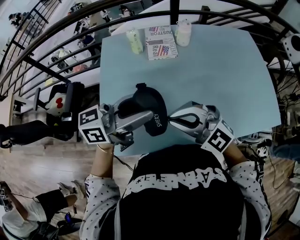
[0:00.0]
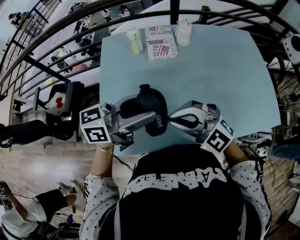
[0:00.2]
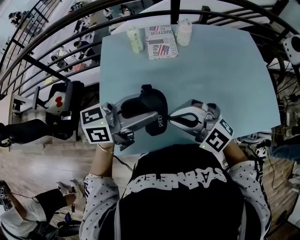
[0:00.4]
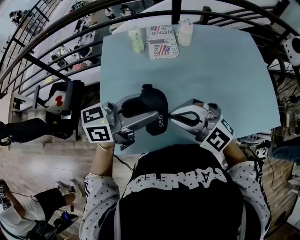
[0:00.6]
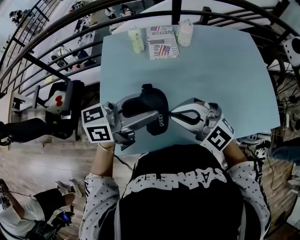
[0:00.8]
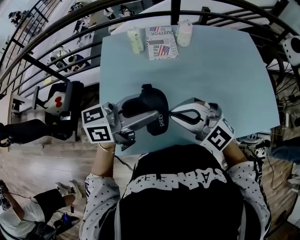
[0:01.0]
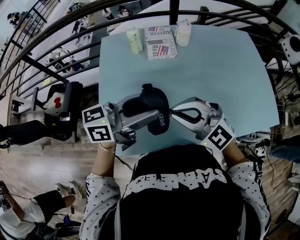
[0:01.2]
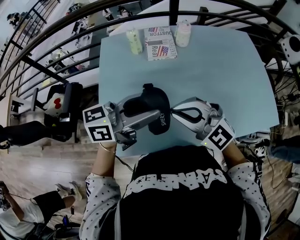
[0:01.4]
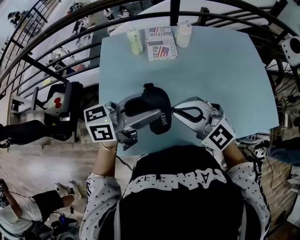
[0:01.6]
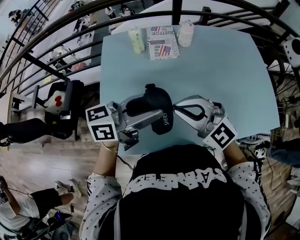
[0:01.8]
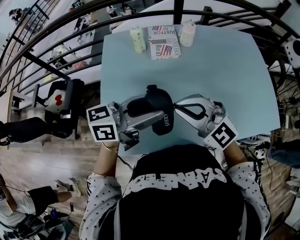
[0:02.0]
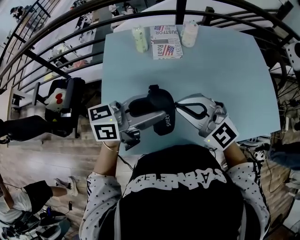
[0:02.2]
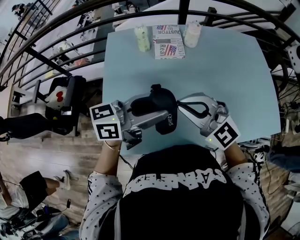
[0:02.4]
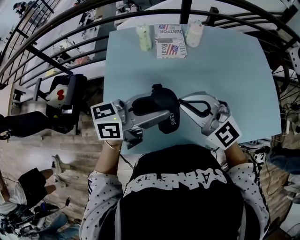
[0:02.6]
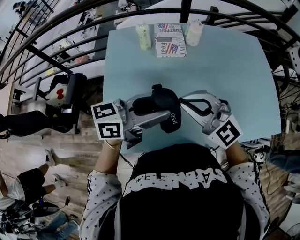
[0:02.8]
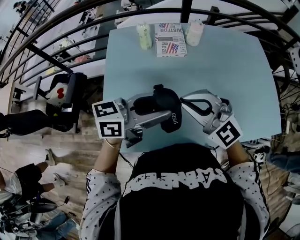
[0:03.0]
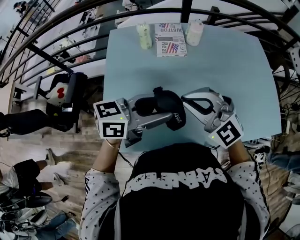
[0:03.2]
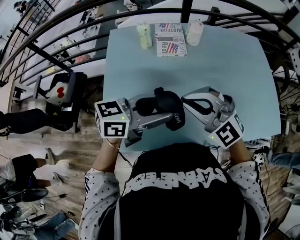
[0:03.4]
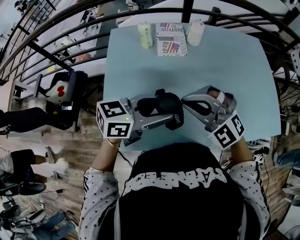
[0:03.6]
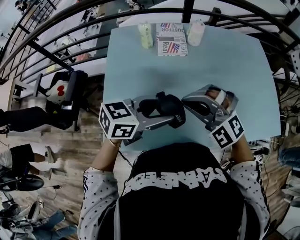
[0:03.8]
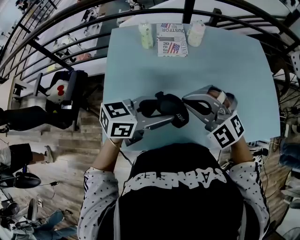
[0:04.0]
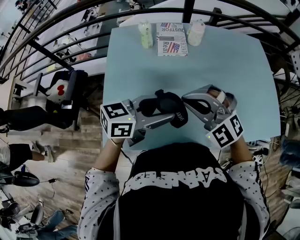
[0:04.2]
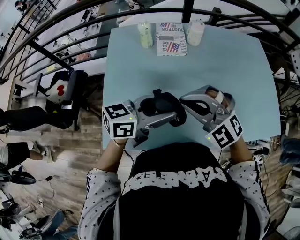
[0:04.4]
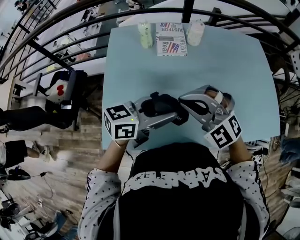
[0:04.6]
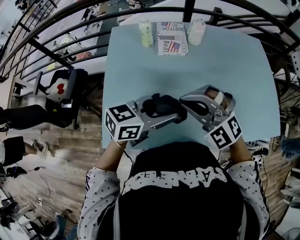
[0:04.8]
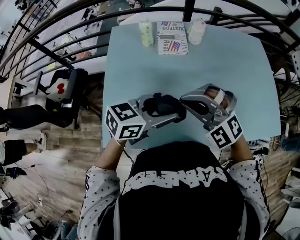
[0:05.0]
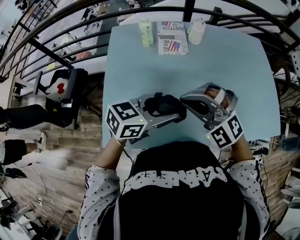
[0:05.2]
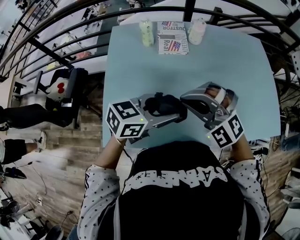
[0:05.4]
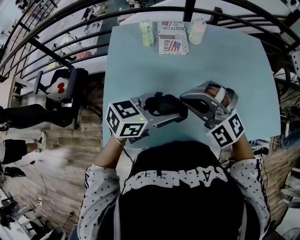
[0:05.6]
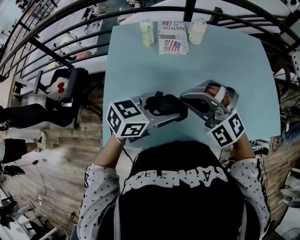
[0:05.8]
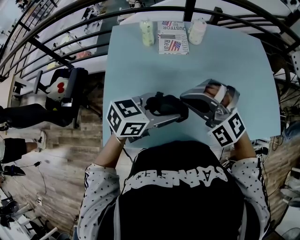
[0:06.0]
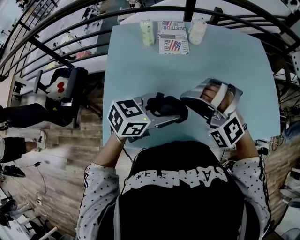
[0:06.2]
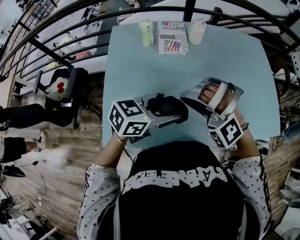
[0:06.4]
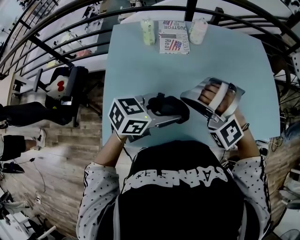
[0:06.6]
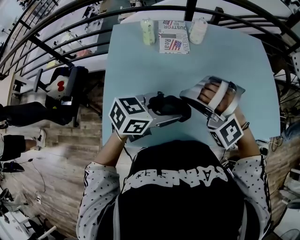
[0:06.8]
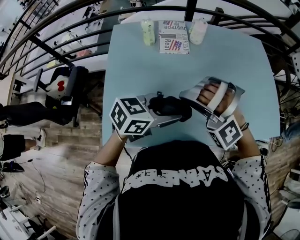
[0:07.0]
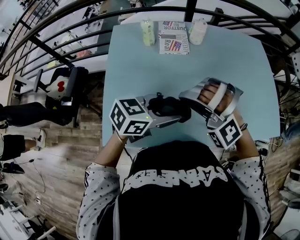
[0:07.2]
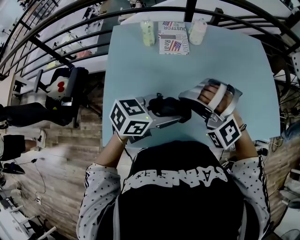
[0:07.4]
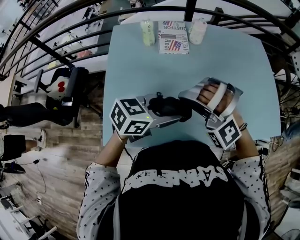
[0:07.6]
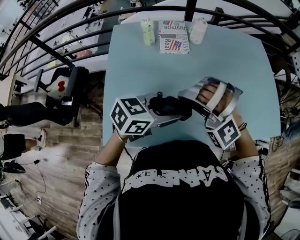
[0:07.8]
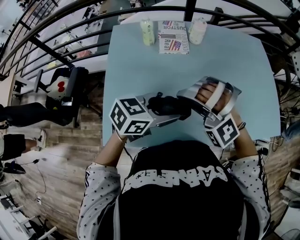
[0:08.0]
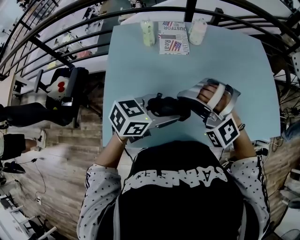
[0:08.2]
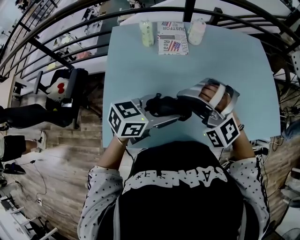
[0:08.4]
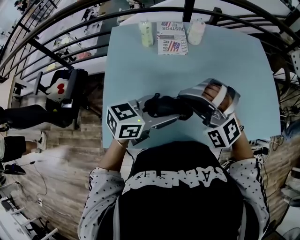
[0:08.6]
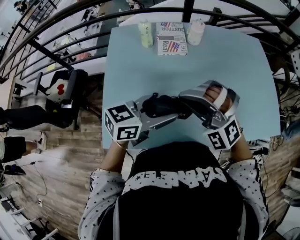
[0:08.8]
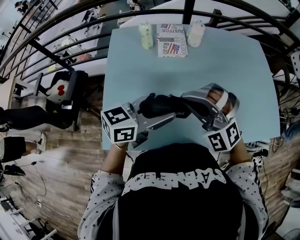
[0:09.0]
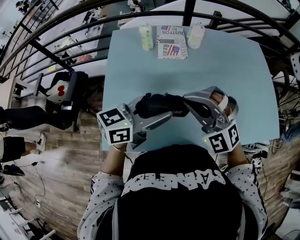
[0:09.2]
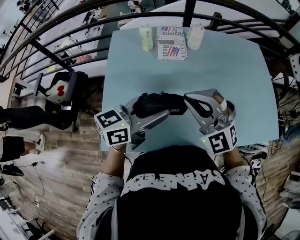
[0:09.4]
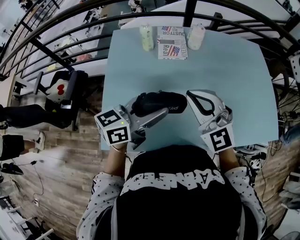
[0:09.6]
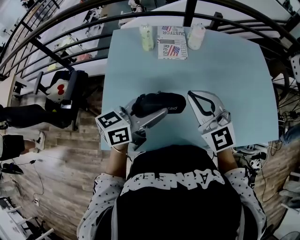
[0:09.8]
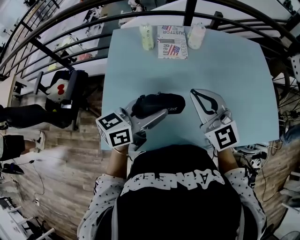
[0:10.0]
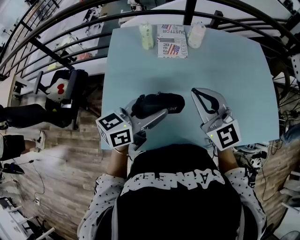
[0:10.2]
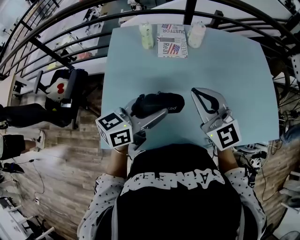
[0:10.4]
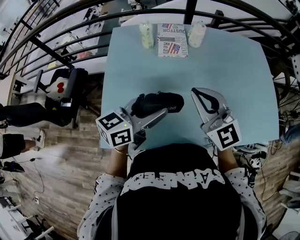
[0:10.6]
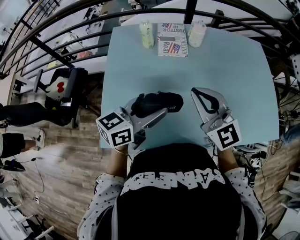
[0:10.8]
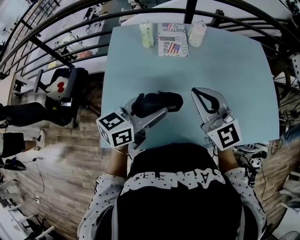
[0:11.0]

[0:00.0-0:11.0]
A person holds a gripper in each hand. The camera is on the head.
0:00.0 to 0:03.2: The grippers make only small movements.
0:04.8 to 0:06.2: The right gripper swivels about 30 degrees.
0:06.2 to 0:07.8: The grippers move only a little.
0:07.8 to 0:09.4: The right gripper rotates around the line of its fingers by about 40 degrees, clockwise from behind; the left gripper is displaced upward by about 5 cm, and rotates roughly 30 degrees.
0:09.4 to 0:11.0: The right gripper swivels roughly 30 degrees.

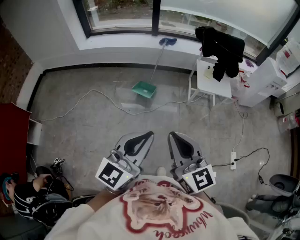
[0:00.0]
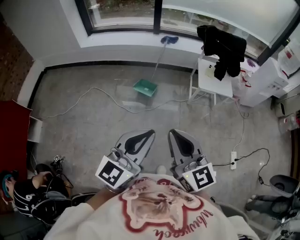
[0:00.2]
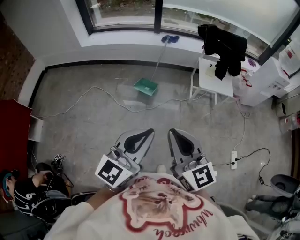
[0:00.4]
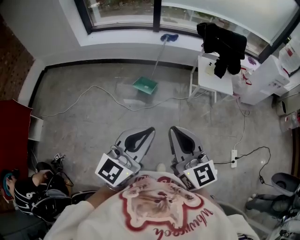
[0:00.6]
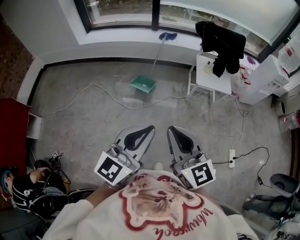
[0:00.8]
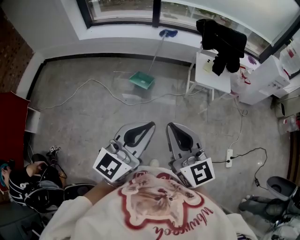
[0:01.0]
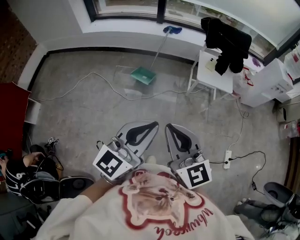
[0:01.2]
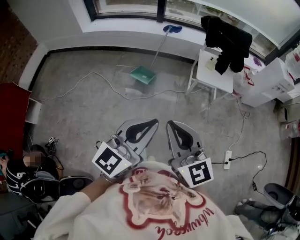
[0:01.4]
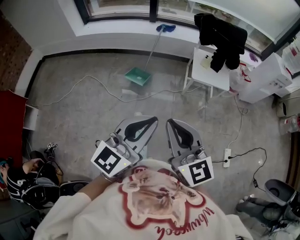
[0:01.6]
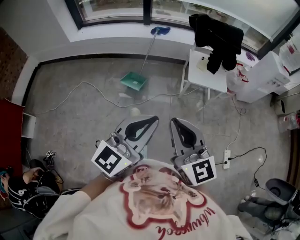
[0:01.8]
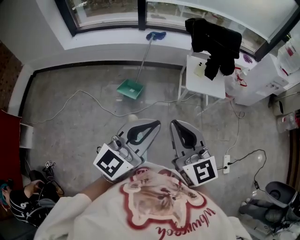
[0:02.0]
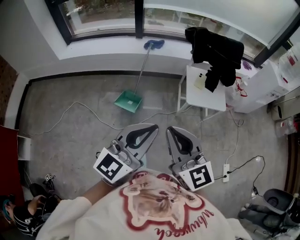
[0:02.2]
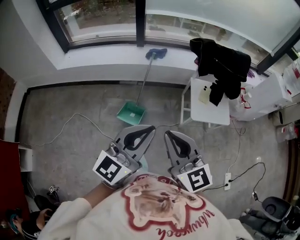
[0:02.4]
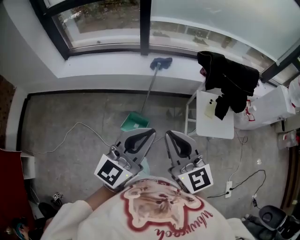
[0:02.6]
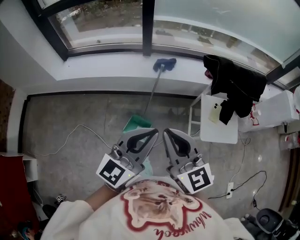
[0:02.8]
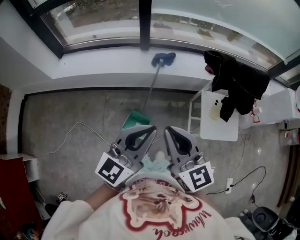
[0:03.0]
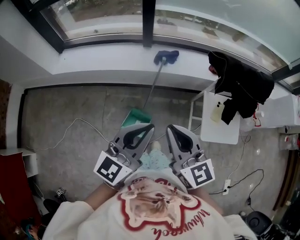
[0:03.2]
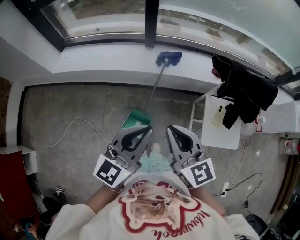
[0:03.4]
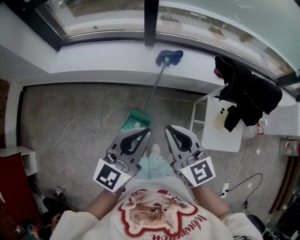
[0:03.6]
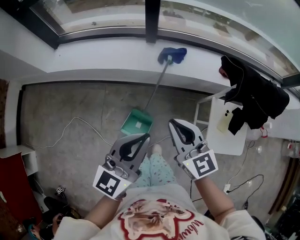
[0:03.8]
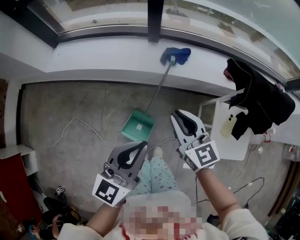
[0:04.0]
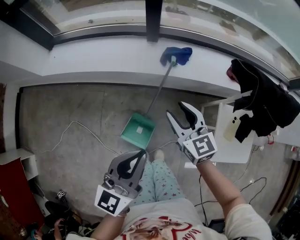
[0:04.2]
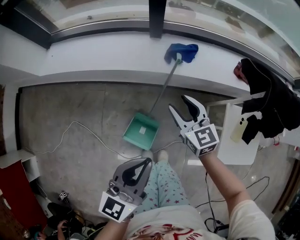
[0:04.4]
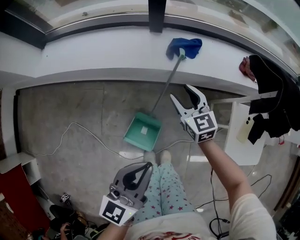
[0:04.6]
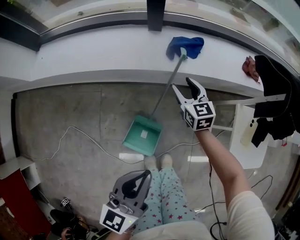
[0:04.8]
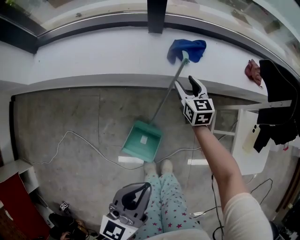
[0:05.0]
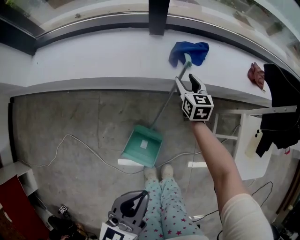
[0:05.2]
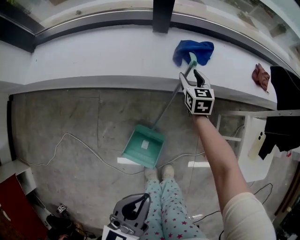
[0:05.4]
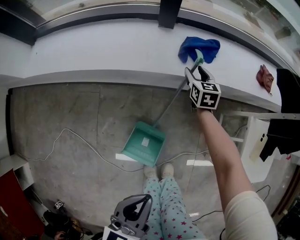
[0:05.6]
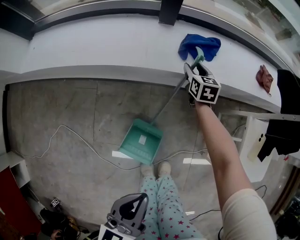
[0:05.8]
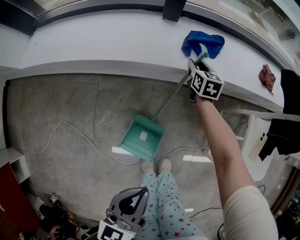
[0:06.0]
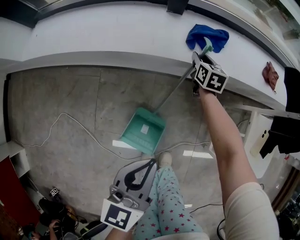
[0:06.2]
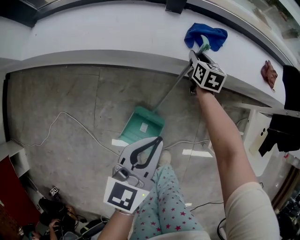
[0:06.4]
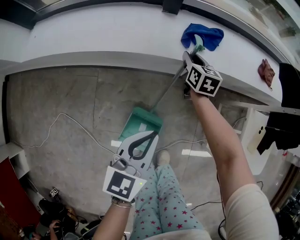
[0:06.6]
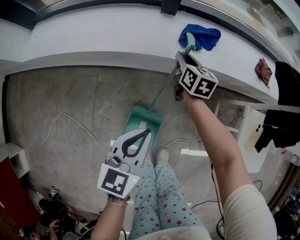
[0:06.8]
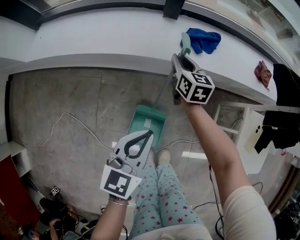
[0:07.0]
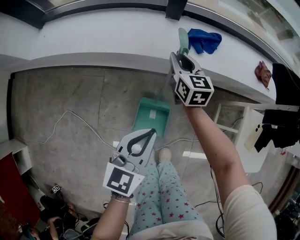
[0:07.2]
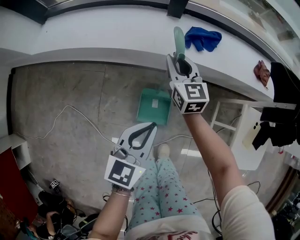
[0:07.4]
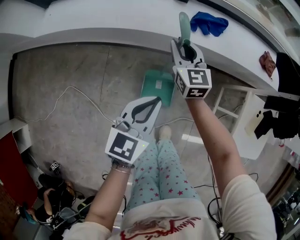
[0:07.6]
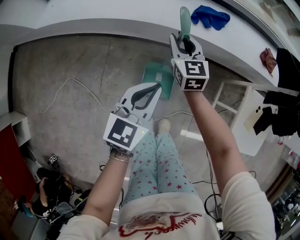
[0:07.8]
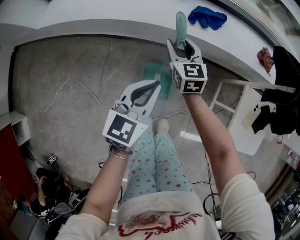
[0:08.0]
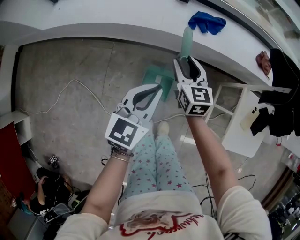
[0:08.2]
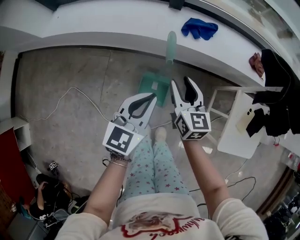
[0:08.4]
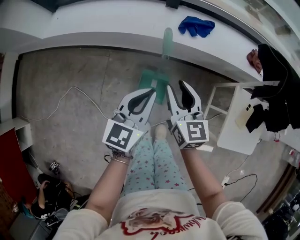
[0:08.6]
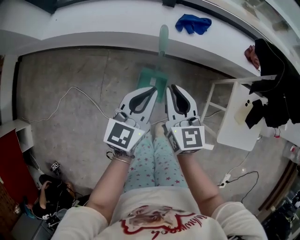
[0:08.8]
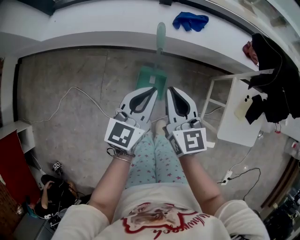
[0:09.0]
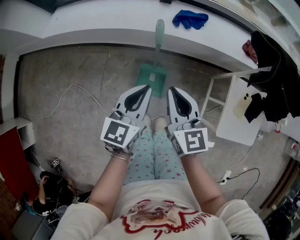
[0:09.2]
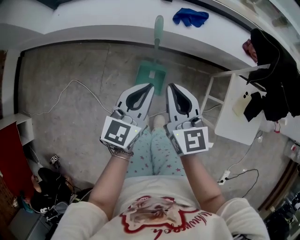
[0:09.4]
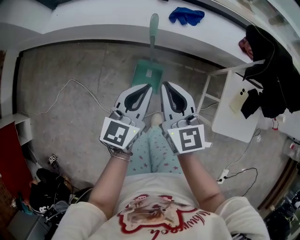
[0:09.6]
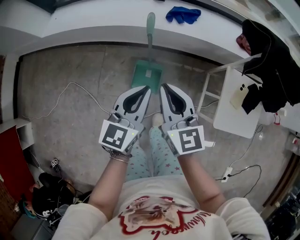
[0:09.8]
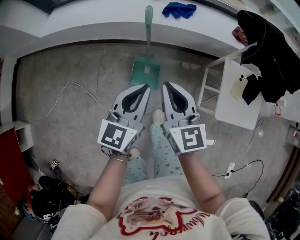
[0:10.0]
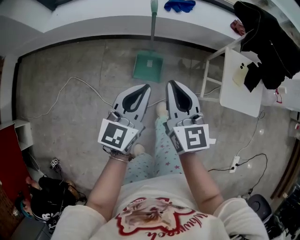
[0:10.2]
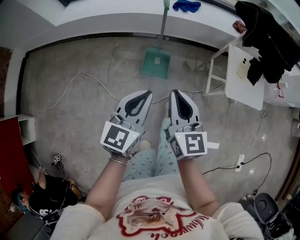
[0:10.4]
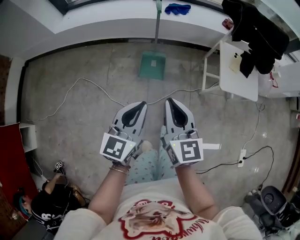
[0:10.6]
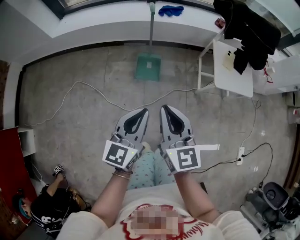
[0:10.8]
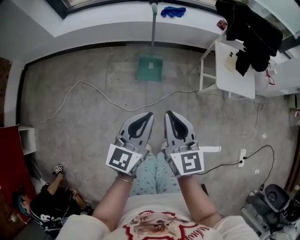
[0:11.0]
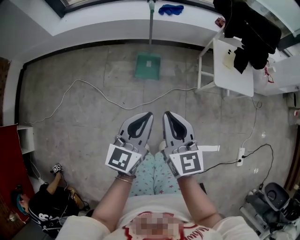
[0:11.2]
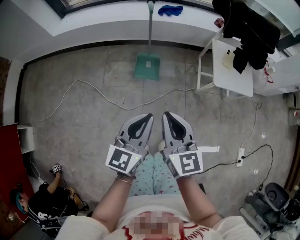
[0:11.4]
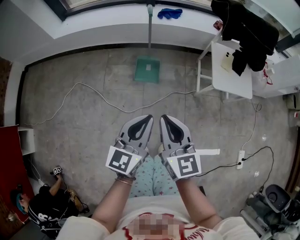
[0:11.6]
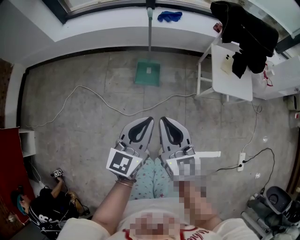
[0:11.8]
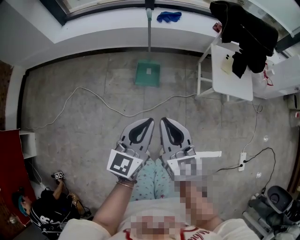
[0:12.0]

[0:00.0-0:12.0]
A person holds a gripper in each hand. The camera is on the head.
0:00.0 to 0:01.6: The grippers both shift to the right by some 10 cm.
0:01.6 to 0:03.0: The pair of grippers is taken forward, roughly 60 cm.
0:03.0 to 0:04.4: The right gripper travels downward and forward by about 40 cm, rotates some 20 degrees, and opens its fingers, while the left gripper heads downward and forward, covering roughly 25 cm, and swivels approximately 20 degrees.
0:04.4 to 0:06.0: The right gripper heads downward and forward, covering about 35 cm, and turns by roughly 30 degrees. The left gripper shifts some 15 cm downward.
0:06.0 to 0:07.6: The left gripper goes about 5 cm forward. The right gripper goes roughly 25 cm upward, backward and to the left, and changes its angle by some 30 degrees.
0:07.6 to 0:09.0: The left gripper is displaced upward by approximately 10 cm; the right gripper is displaced backward and upward by about 25 cm, and opens, then closes once more.
0:09.0 to 0:10.4: Both grippers travel together backward, some 30 cm.
0:10.4 to 0:12.0: The right gripper shifts some 15 cm backward. The left gripper shifts about 15 cm backward and to the right.

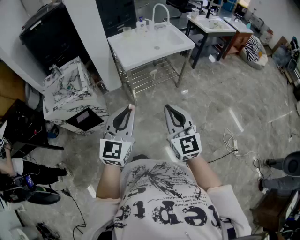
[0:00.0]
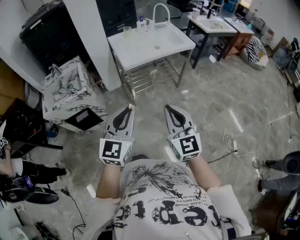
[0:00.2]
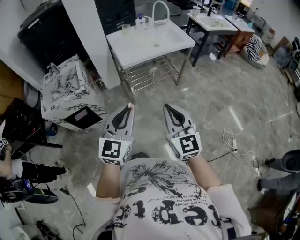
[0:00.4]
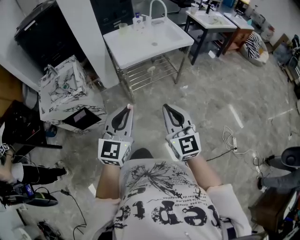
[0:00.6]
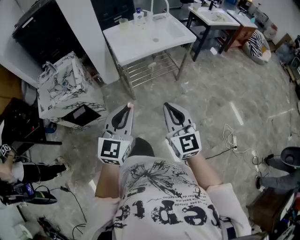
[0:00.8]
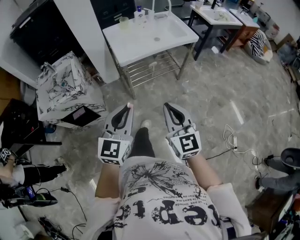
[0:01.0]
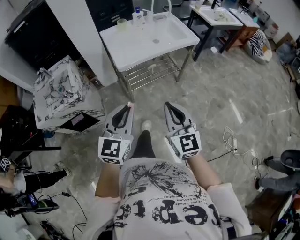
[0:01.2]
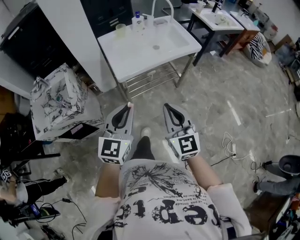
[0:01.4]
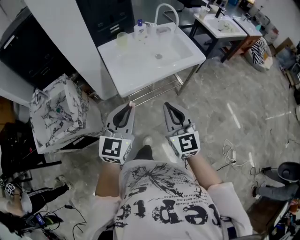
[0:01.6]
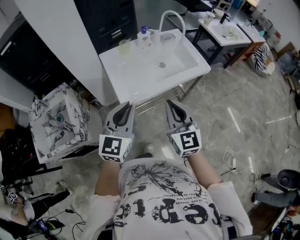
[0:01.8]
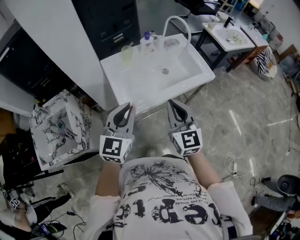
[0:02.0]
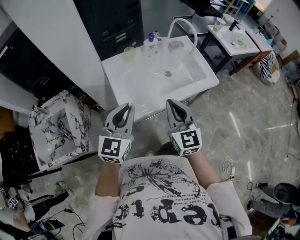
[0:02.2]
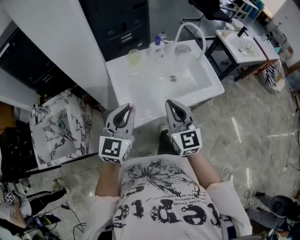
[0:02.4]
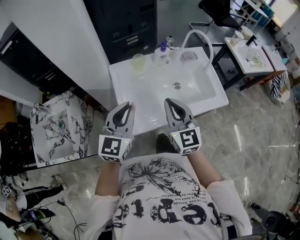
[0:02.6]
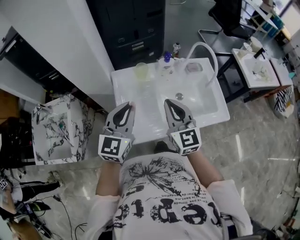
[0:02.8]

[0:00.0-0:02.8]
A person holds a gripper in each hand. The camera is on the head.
0:00.0 to 0:01.4: The grippers both shift forward by roughly 20 cm.
0:01.4 to 0:02.8: Both grippers are carried forward, approximately 50 cm.
